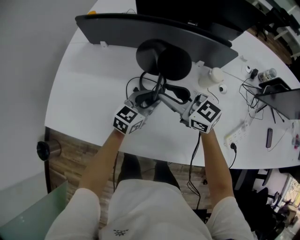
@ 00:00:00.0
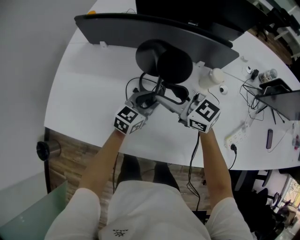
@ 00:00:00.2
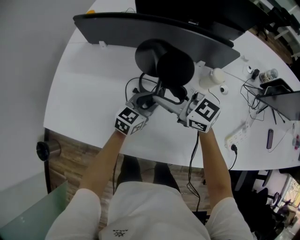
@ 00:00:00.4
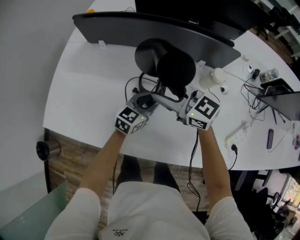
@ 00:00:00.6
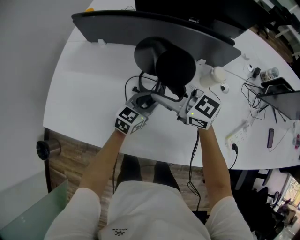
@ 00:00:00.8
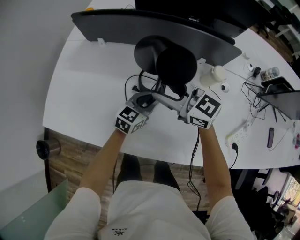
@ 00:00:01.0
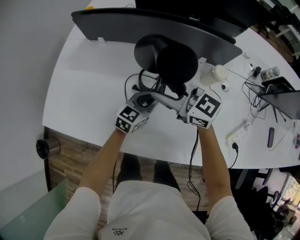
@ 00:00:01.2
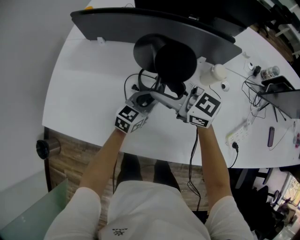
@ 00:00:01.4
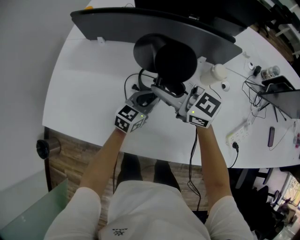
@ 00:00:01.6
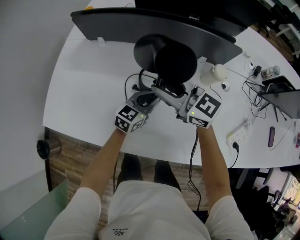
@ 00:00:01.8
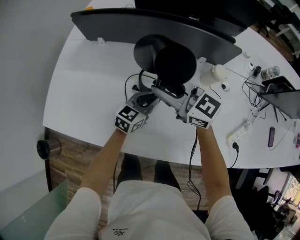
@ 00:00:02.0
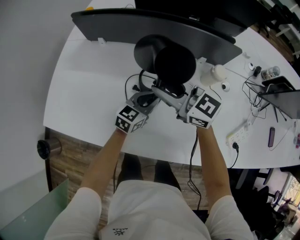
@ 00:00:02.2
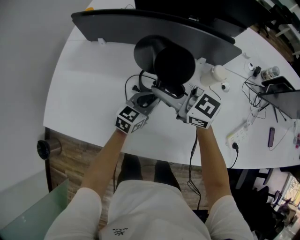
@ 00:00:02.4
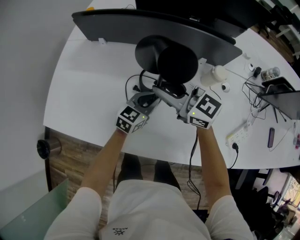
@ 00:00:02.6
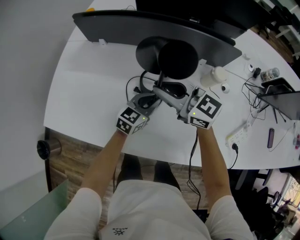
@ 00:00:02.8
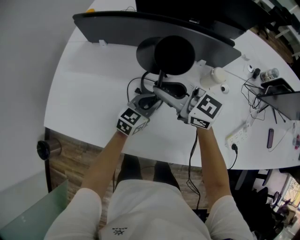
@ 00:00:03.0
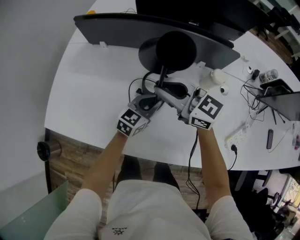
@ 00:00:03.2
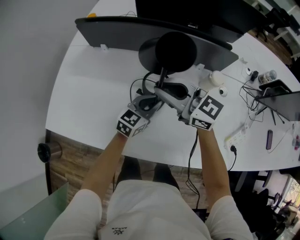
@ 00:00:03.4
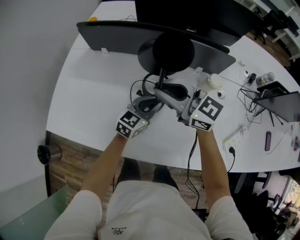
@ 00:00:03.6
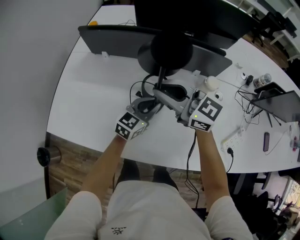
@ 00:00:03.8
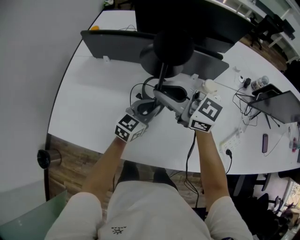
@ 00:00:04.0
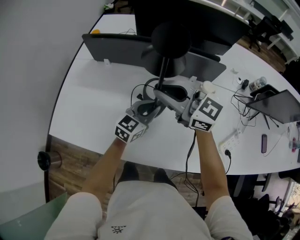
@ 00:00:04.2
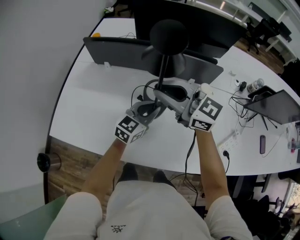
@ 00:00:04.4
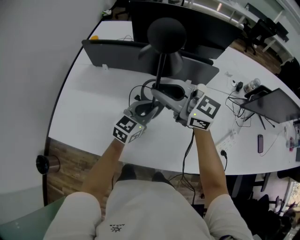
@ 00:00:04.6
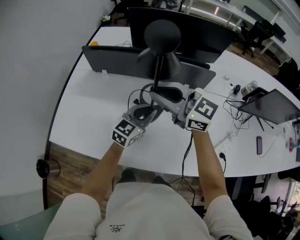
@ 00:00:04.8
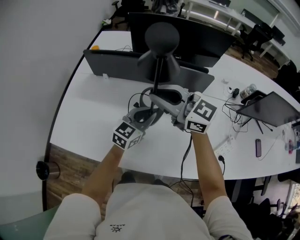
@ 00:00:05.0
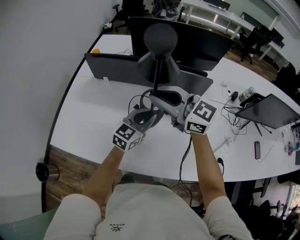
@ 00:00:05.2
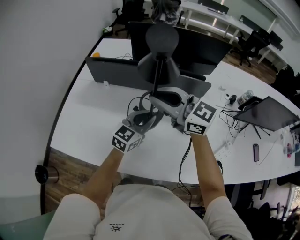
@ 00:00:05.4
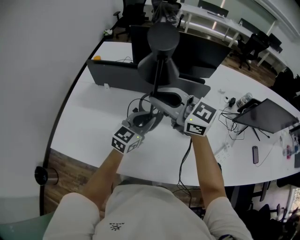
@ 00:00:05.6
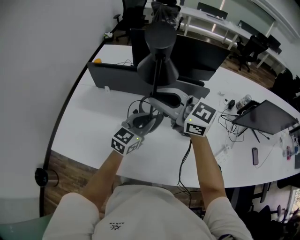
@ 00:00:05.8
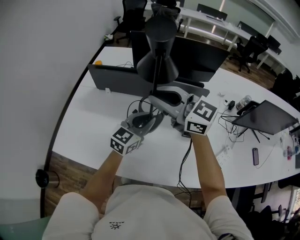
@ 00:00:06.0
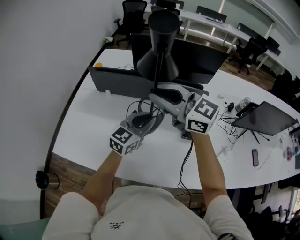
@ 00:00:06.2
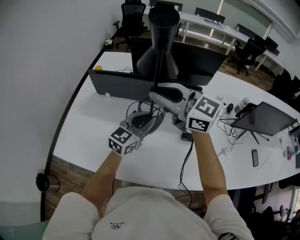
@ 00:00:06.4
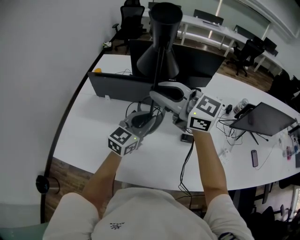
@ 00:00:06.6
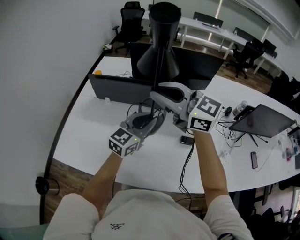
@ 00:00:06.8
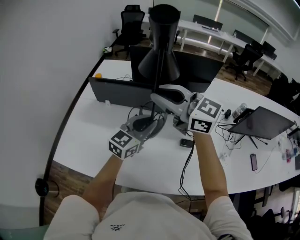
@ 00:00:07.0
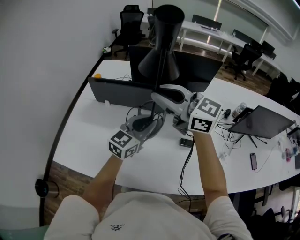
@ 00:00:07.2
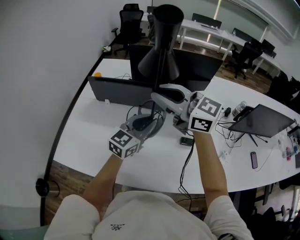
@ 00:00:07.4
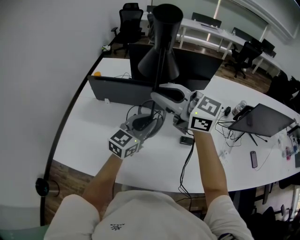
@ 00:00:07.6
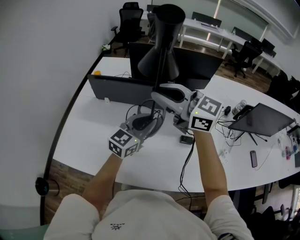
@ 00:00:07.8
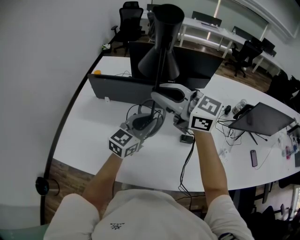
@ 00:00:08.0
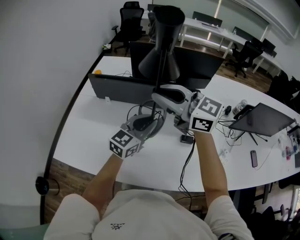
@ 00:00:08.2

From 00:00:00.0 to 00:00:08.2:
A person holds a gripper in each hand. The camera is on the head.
From 00:00:00.0 to 00:00:03.2: The grippers move only a little.
From 00:00:03.2 to 00:00:05.0: Both grippers move upward, roughly 15 cm.
From 00:00:05.0 to 00:00:06.6: The two grippers go approximately 10 cm upward.
From 00:00:06.6 to 00:00:08.2: The grippers stay close to where they were, moving slightly.

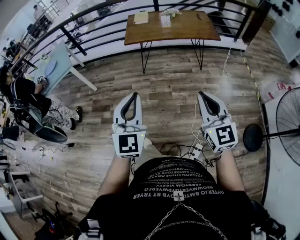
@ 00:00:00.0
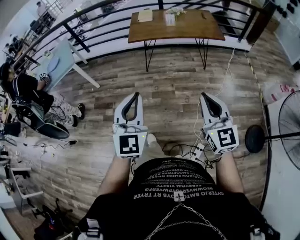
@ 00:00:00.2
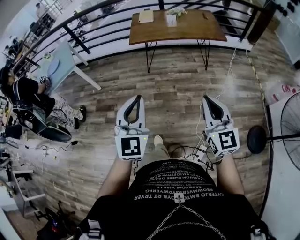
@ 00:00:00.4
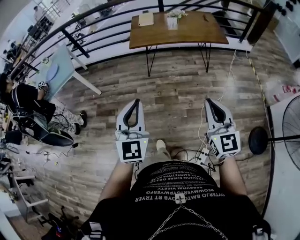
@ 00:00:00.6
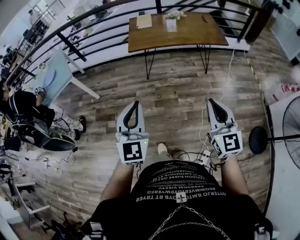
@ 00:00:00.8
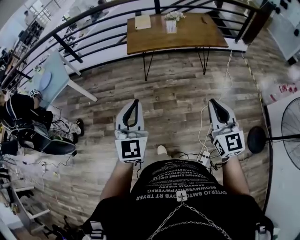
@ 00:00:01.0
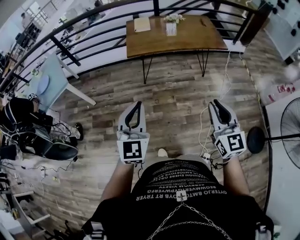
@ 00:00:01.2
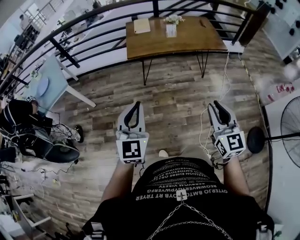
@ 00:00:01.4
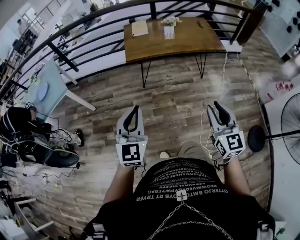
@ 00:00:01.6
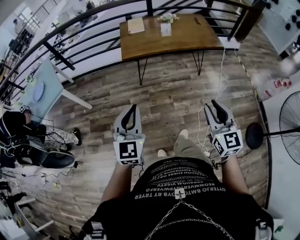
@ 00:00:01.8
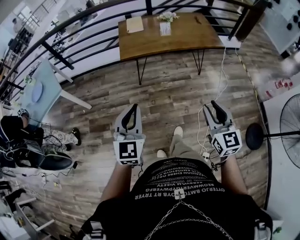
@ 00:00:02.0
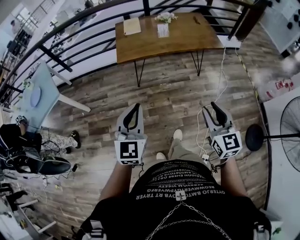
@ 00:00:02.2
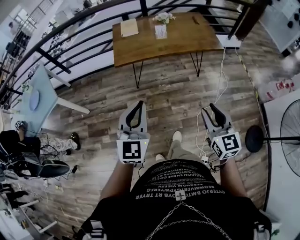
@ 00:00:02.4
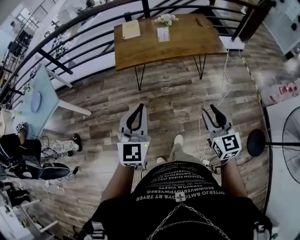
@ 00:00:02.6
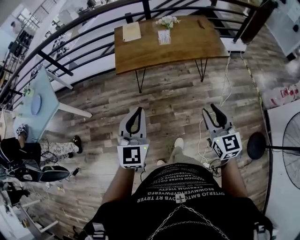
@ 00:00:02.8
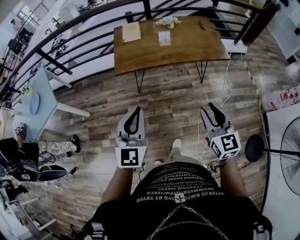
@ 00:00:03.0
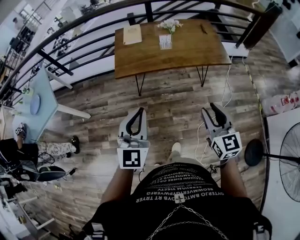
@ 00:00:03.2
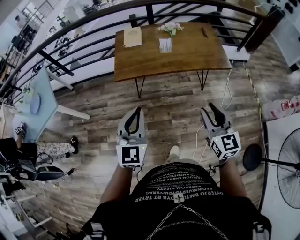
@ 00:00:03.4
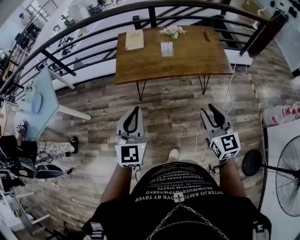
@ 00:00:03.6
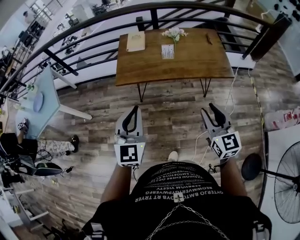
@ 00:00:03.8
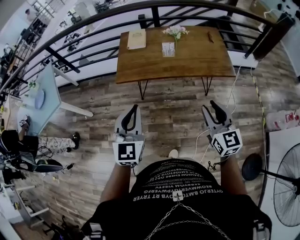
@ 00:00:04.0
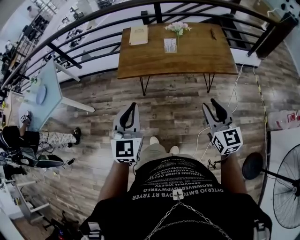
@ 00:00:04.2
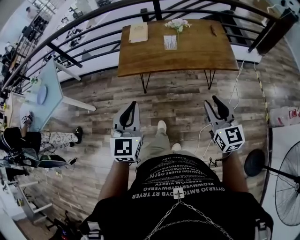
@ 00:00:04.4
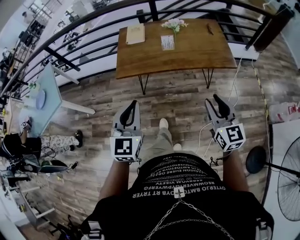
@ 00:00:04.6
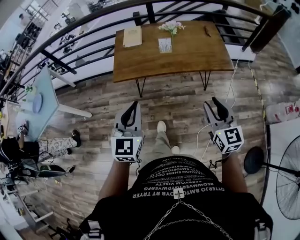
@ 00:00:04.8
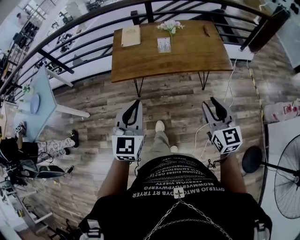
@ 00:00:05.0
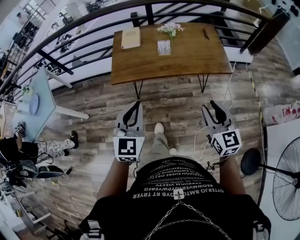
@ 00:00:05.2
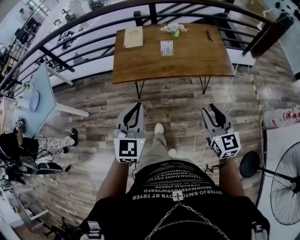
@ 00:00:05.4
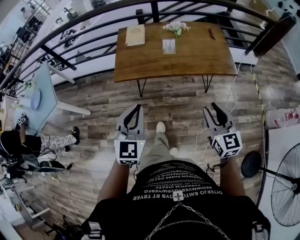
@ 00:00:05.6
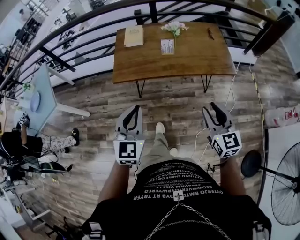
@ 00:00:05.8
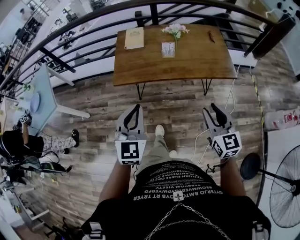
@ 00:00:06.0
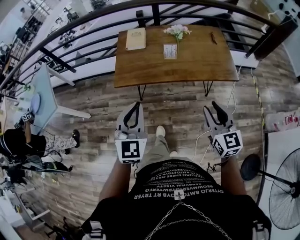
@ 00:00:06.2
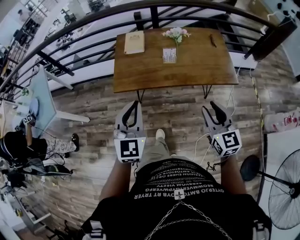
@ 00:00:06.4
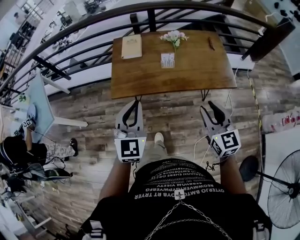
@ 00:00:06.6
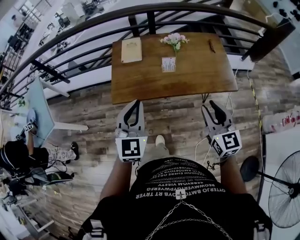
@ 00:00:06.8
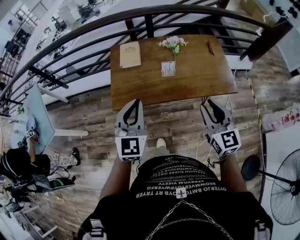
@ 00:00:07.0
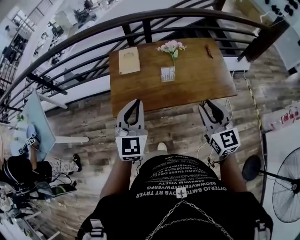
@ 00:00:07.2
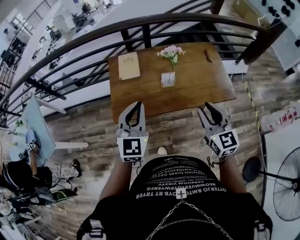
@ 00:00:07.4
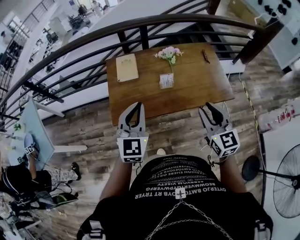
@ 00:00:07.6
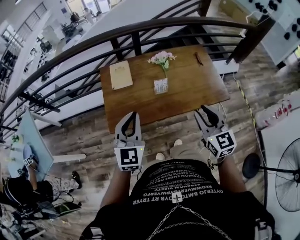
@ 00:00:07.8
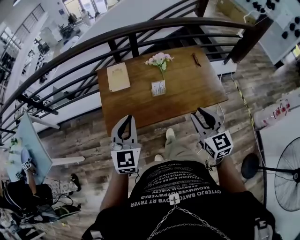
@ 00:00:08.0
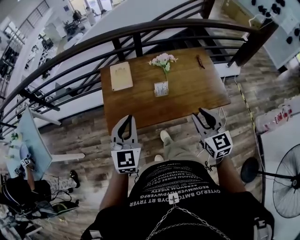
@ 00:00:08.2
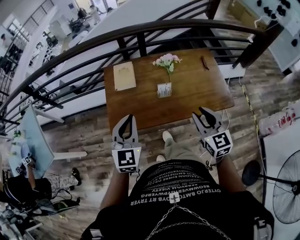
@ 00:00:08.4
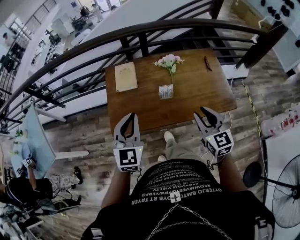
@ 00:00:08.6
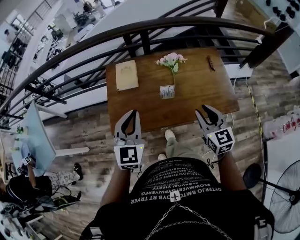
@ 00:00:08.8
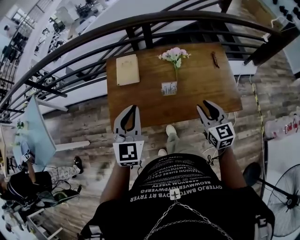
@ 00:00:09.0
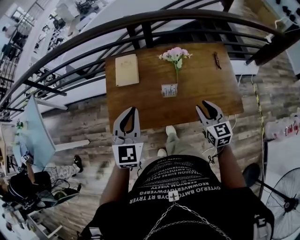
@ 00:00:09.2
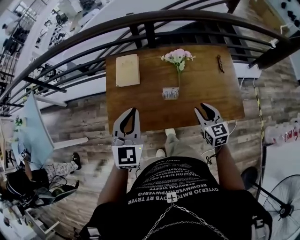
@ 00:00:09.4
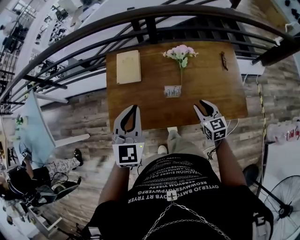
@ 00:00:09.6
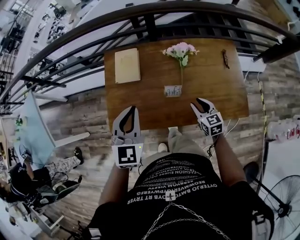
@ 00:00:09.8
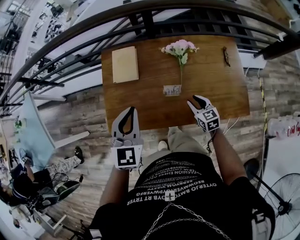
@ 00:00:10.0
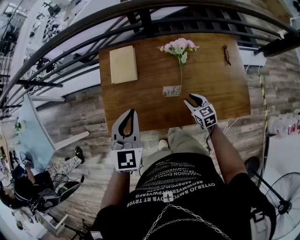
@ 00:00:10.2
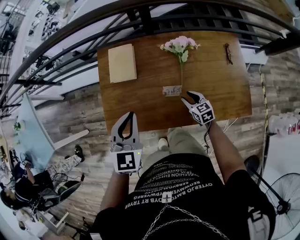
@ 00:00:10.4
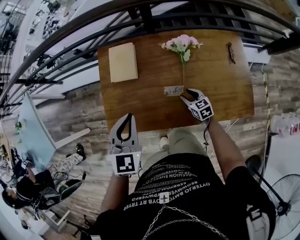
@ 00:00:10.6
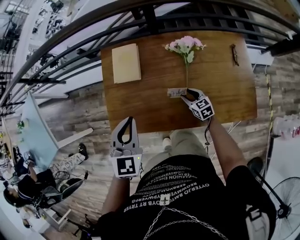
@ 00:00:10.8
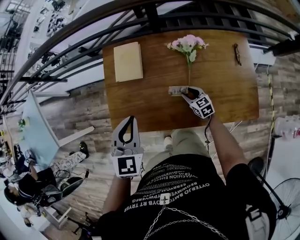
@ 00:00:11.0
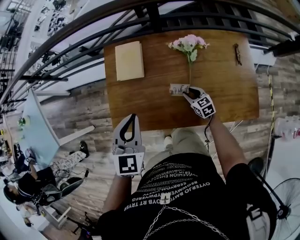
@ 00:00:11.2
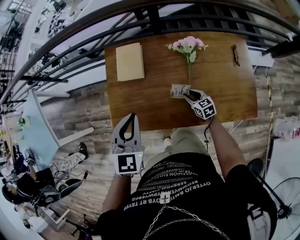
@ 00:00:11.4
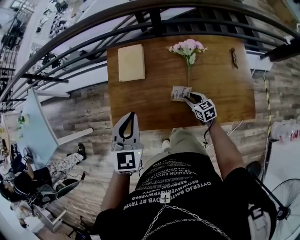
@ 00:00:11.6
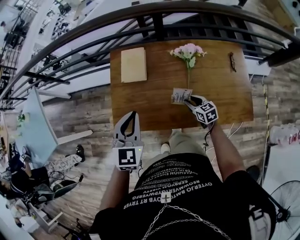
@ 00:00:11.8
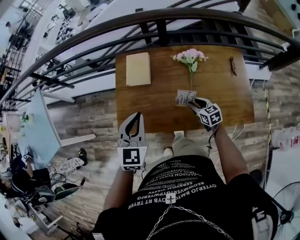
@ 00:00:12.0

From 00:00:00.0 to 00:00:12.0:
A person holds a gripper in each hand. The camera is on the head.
From 00:00:00.0 to 00:00:01.6: The two grippers go some 20 cm forward and to the left. The right gripper opens.
From 00:00:01.6 to 00:00:03.0: The left gripper heads forward and to the right, covering about 20 cm. Meanwhile the right gripper shifts approximately 20 cm forward.
From 00:00:03.0 to 00:00:04.4: The left gripper travels forward by some 5 cm. Meanwhile the right gripper shifts some 15 cm forward and to the right.
From 00:00:04.4 to 00:00:06.0: The left gripper goes roughly 5 cm forward.
From 00:00:06.0 to 00:00:07.6: The grippers both shift forward by some 25 cm.
From 00:00:07.6 to 00:00:09.0: The right gripper travels forward and downward by approximately 15 cm, while the left gripper moves forward, roughly 10 cm.
From 00:00:09.0 to 00:00:10.4: The left gripper heads downward and forward, covering approximately 10 cm. The right gripper shifts some 30 cm downward and forward, and changes its angle by roughly 30 degrees.
From 00:00:10.4 to 00:00:12.0: The grippers stay close to where they were, moving slightly.

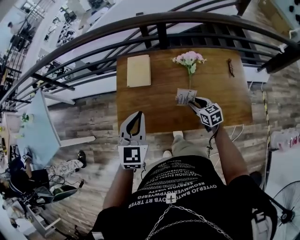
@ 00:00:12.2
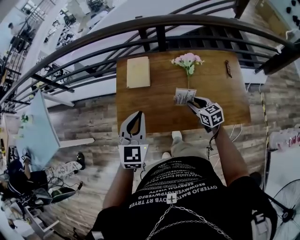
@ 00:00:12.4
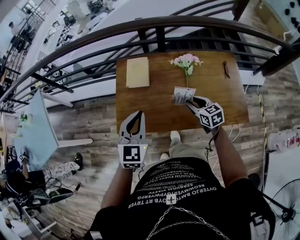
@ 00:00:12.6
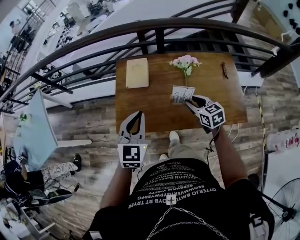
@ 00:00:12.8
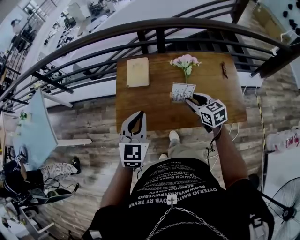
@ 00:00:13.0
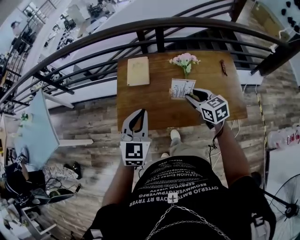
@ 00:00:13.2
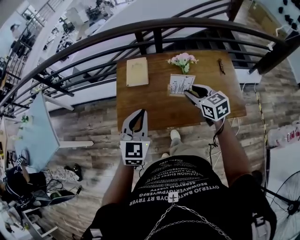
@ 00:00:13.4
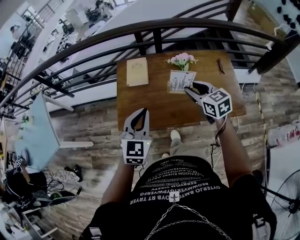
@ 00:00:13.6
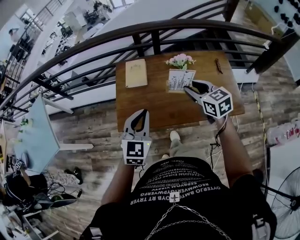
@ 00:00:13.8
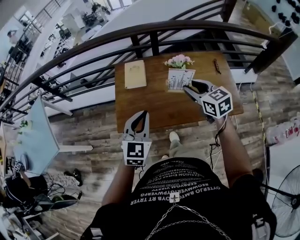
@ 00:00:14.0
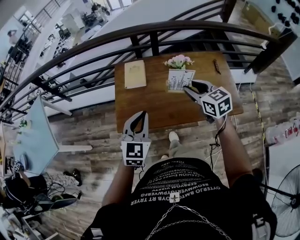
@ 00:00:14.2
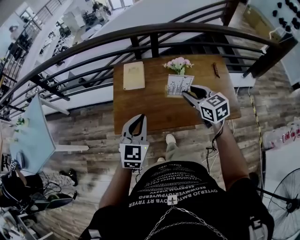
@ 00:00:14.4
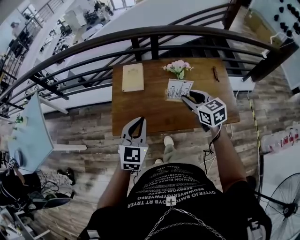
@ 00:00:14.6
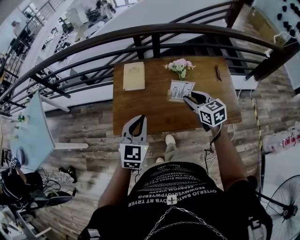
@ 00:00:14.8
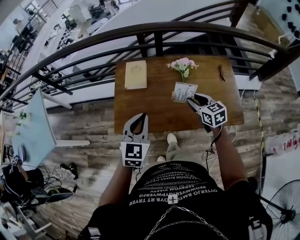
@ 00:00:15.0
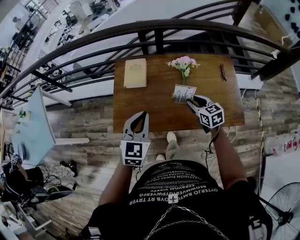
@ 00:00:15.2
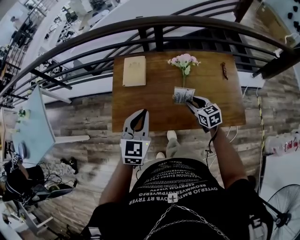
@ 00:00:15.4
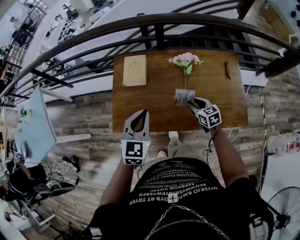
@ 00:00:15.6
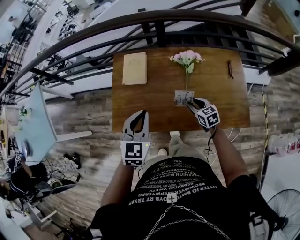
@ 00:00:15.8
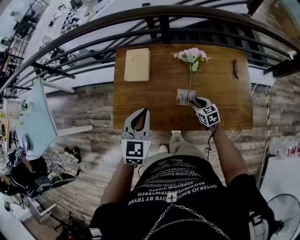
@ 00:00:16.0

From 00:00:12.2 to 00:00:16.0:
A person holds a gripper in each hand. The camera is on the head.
From 00:00:12.2 to 00:00:13.4: The left gripper heads backward, covering about 5 cm, while the right gripper moves upward, about 20 cm.
From 00:00:13.4 to 00:00:14.8: There are only small adjustments of the grippers.
From 00:00:14.8 to 00:00:16.0: The left gripper heads forward and downward, covering approximately 10 cm, while the right gripper is displaced downward by about 25 cm.
